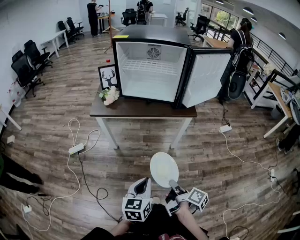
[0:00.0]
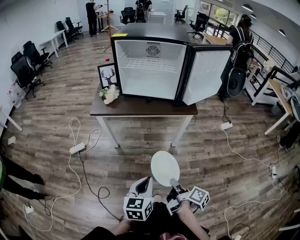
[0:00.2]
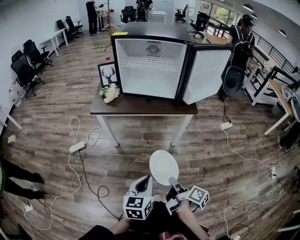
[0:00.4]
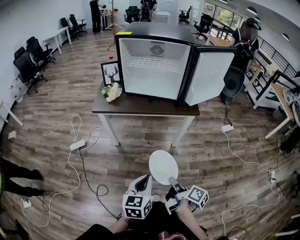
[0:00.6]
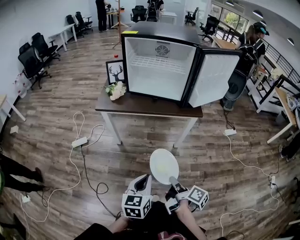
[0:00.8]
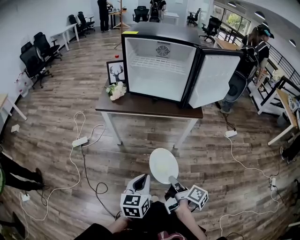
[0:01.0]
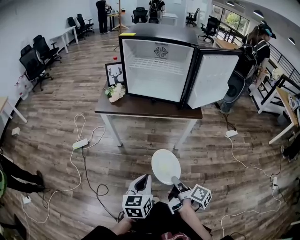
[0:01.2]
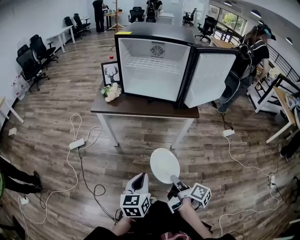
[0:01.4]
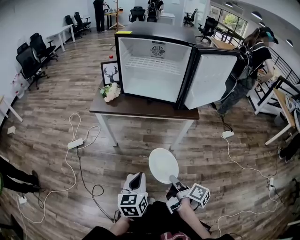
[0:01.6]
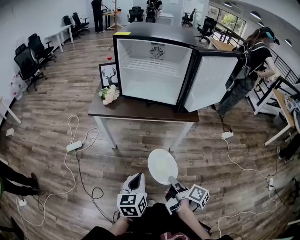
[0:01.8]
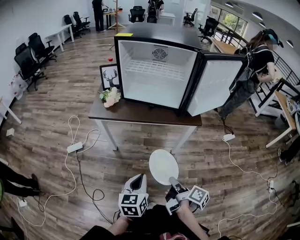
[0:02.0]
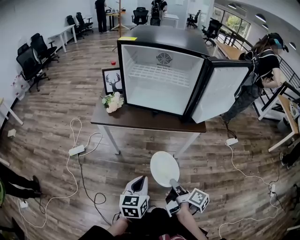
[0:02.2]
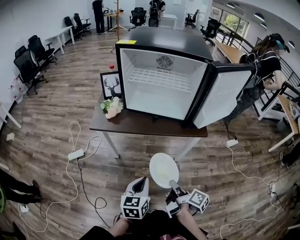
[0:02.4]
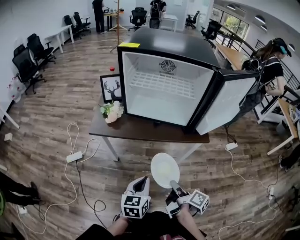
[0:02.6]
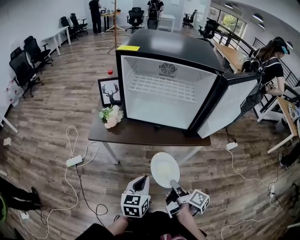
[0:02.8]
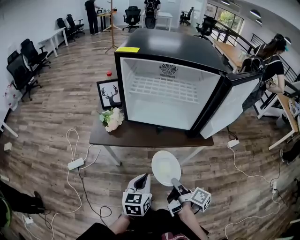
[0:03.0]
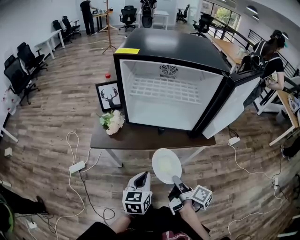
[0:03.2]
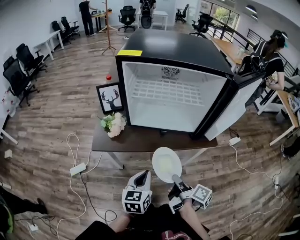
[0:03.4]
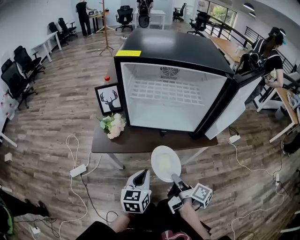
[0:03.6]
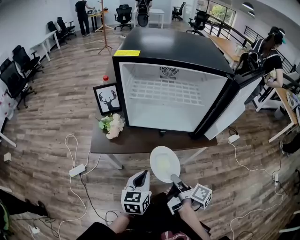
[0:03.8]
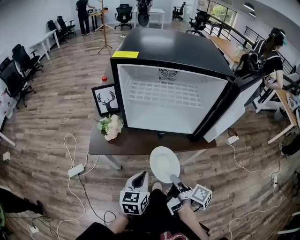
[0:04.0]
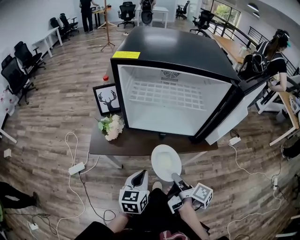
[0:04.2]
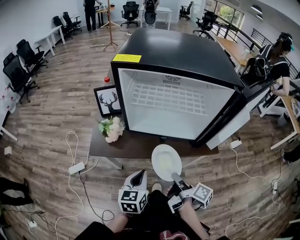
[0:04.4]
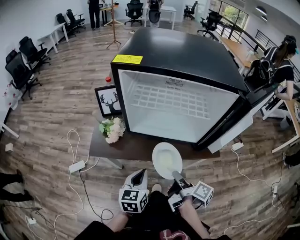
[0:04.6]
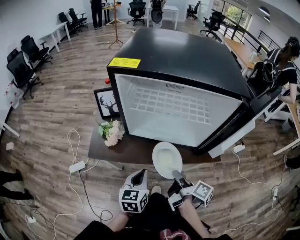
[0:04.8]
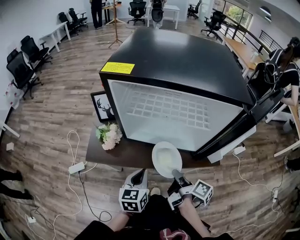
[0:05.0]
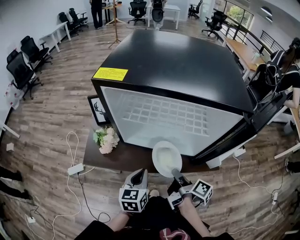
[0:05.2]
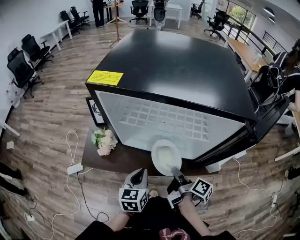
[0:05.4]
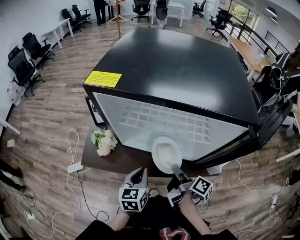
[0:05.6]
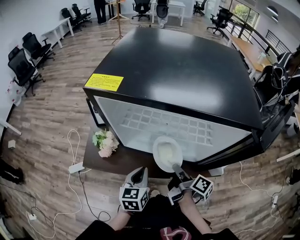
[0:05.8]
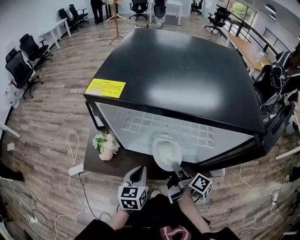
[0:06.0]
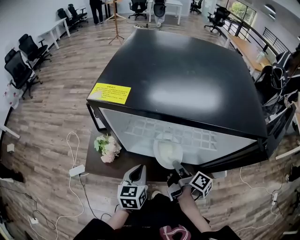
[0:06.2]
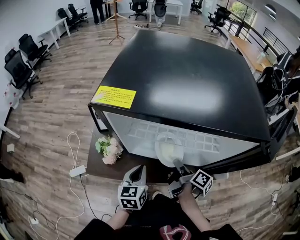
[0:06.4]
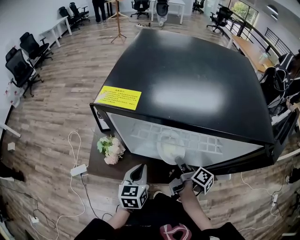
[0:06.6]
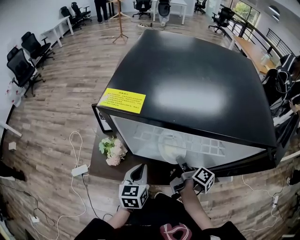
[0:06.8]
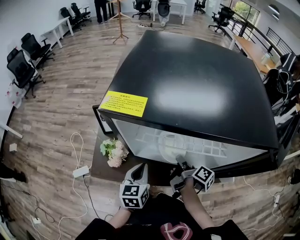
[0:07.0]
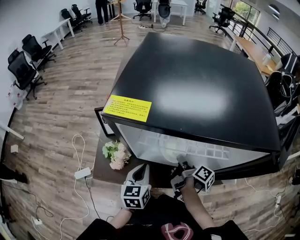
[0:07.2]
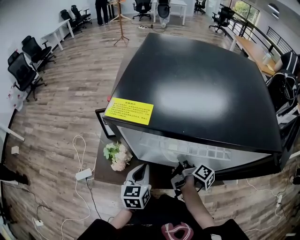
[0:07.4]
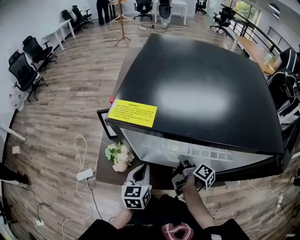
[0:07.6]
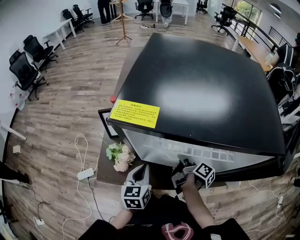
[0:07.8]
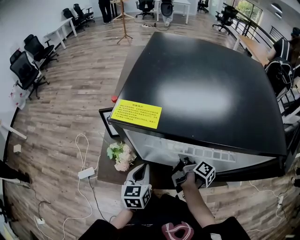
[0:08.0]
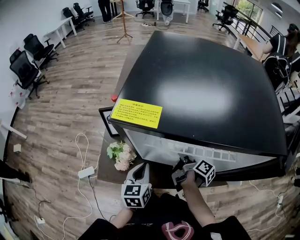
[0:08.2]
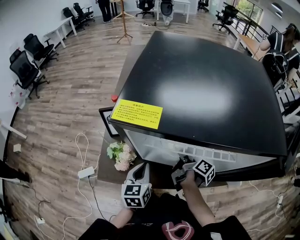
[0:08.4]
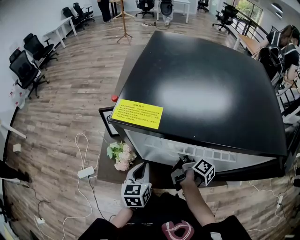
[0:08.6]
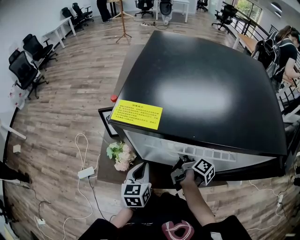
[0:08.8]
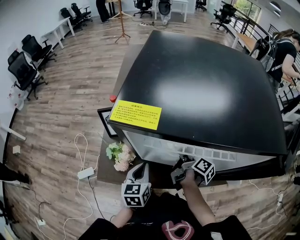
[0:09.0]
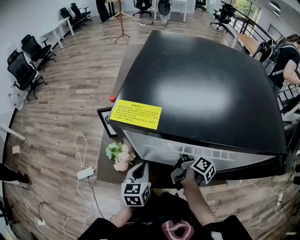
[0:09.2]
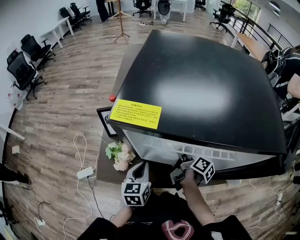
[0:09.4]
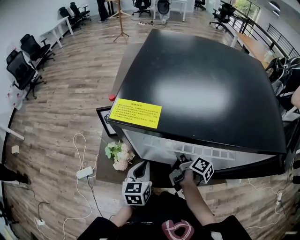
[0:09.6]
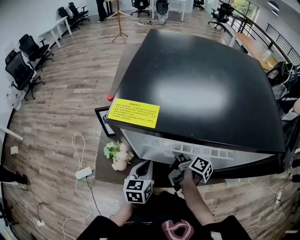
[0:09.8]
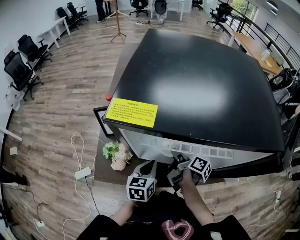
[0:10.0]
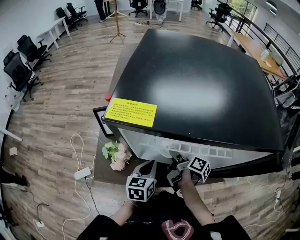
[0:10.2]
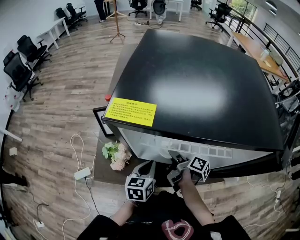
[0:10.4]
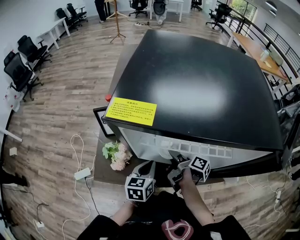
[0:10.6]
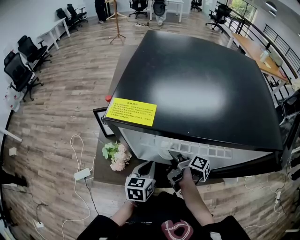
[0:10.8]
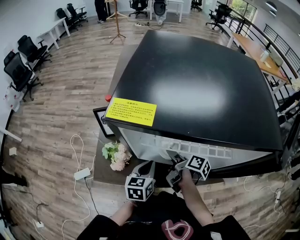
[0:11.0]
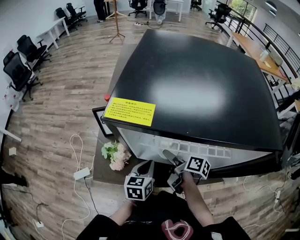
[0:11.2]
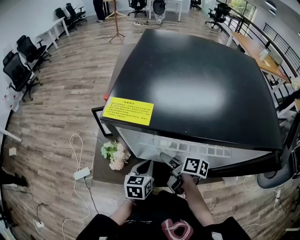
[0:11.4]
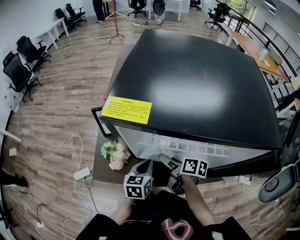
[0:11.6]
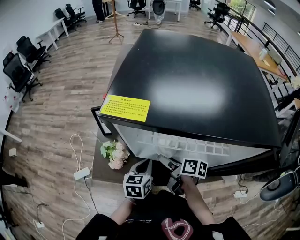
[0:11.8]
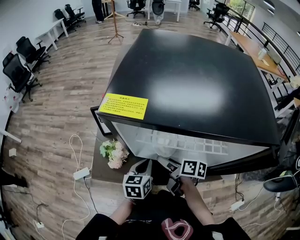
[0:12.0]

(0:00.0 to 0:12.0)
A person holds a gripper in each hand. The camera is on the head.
0:01.6 - 0:03.0: The left gripper shifts by some 25 cm.
0:03.0 - 0:04.4: The left gripper ends up roughly 10 cm from where it was.
0:04.4 - 0:06.0: The left gripper moves some 15 cm.
0:06.0 - 0:07.6: The left gripper shifts by about 10 cm.
0:09.0 - 0:10.4: The left gripper changes place by about 5 cm.

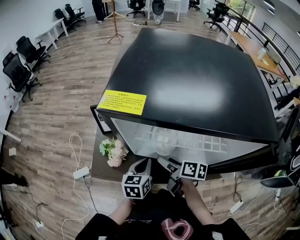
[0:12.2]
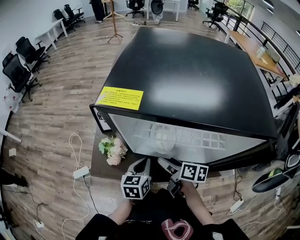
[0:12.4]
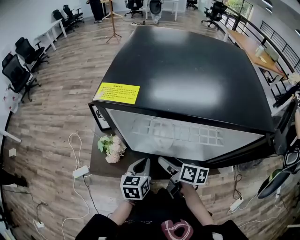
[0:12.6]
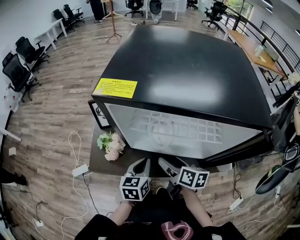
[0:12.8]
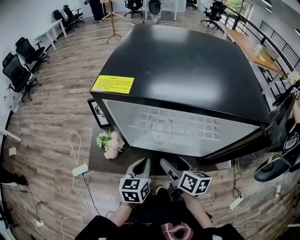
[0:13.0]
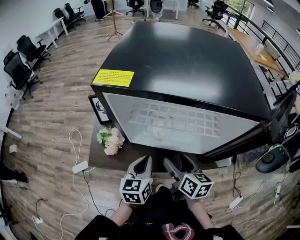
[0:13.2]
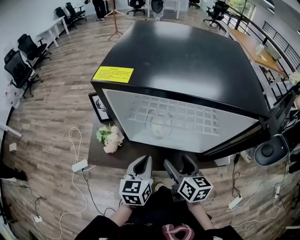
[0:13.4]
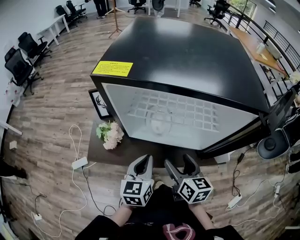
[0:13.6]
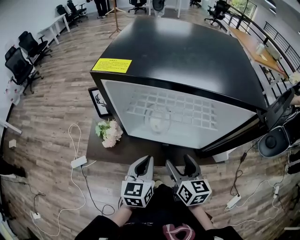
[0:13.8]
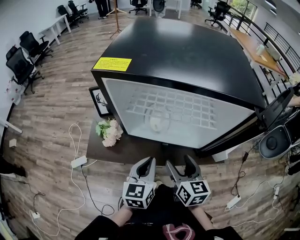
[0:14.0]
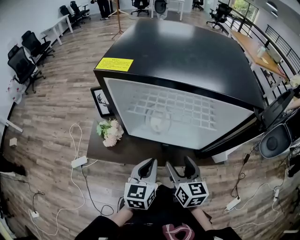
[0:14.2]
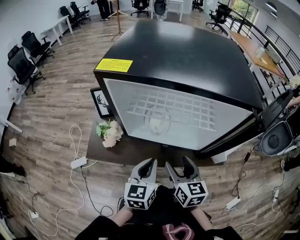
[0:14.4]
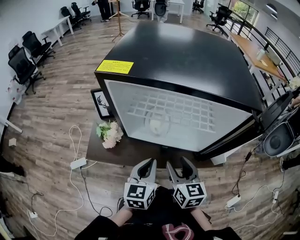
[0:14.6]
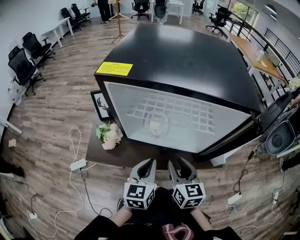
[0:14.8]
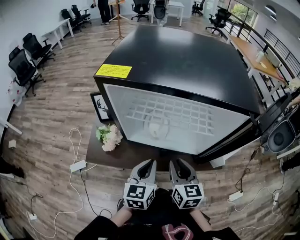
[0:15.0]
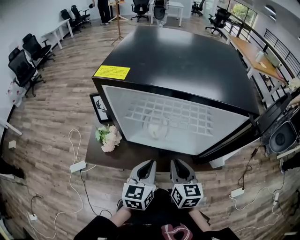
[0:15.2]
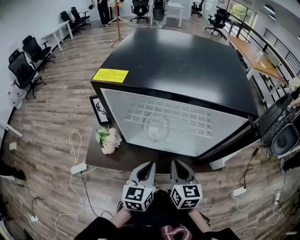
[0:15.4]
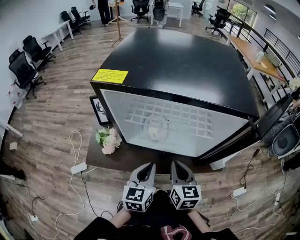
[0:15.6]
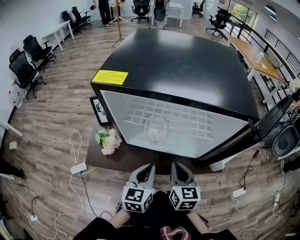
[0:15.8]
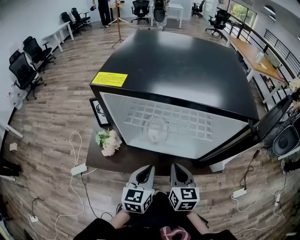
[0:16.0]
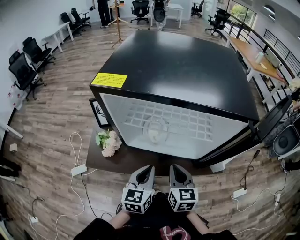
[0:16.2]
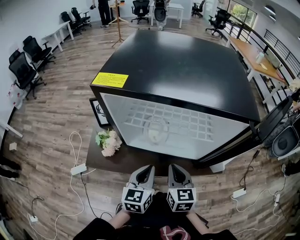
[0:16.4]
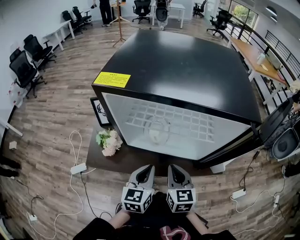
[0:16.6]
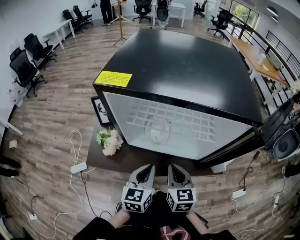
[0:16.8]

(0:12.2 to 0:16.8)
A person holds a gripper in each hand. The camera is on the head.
0:12.2 - 0:13.8: The left gripper changes place by approximately 10 cm.

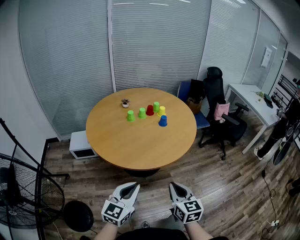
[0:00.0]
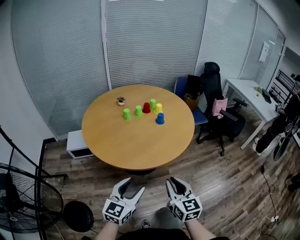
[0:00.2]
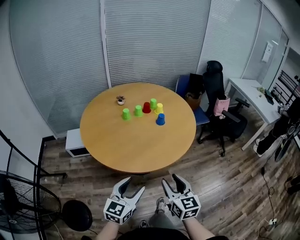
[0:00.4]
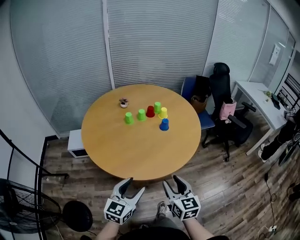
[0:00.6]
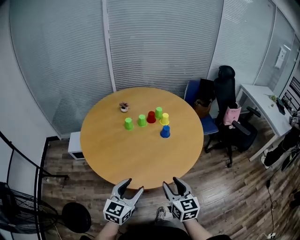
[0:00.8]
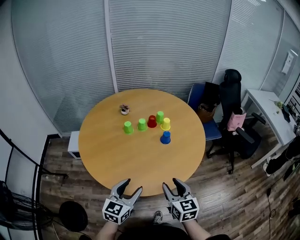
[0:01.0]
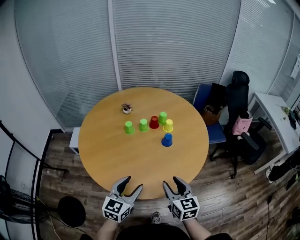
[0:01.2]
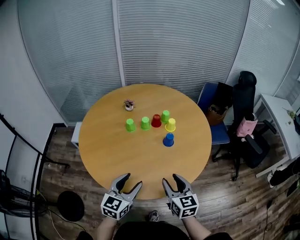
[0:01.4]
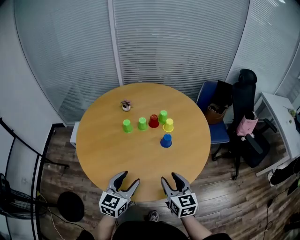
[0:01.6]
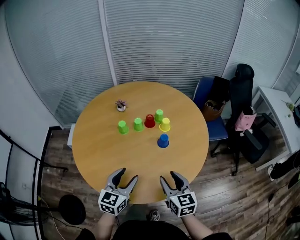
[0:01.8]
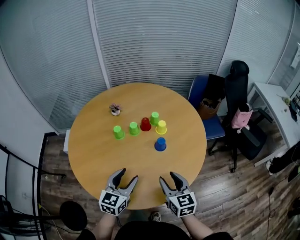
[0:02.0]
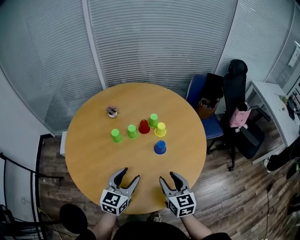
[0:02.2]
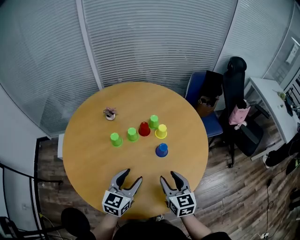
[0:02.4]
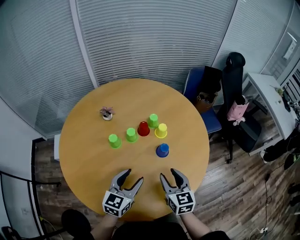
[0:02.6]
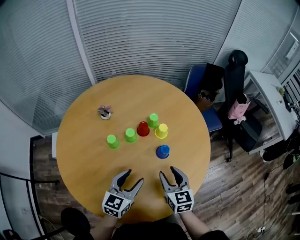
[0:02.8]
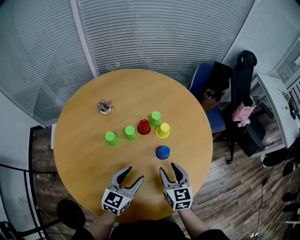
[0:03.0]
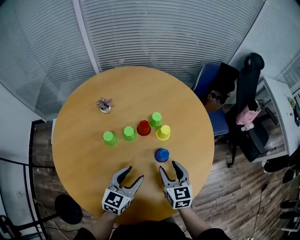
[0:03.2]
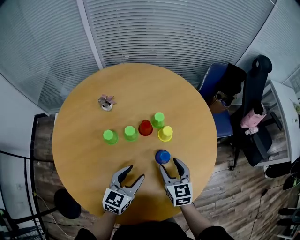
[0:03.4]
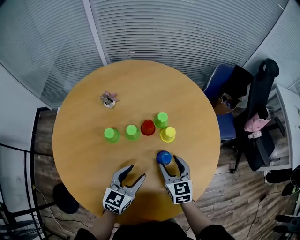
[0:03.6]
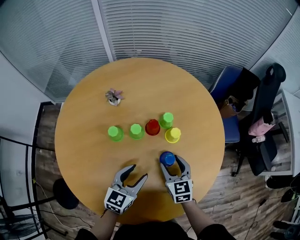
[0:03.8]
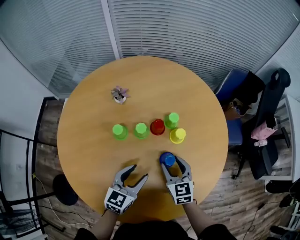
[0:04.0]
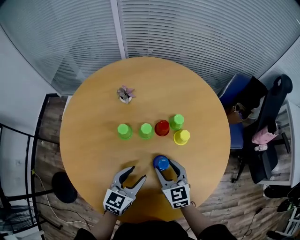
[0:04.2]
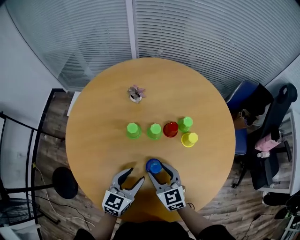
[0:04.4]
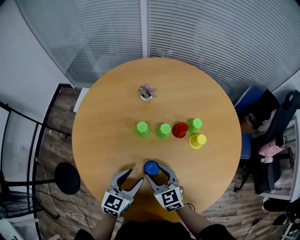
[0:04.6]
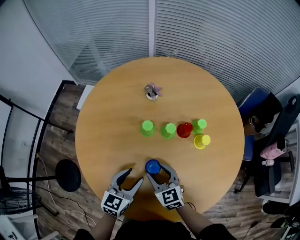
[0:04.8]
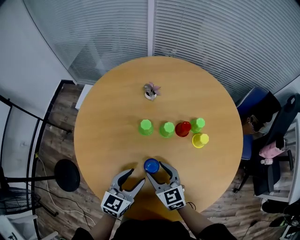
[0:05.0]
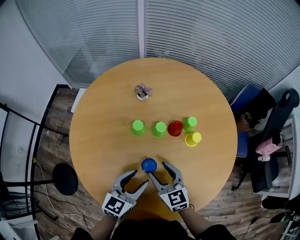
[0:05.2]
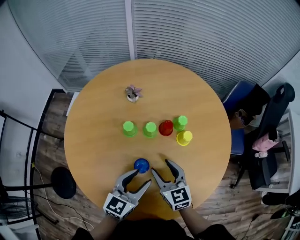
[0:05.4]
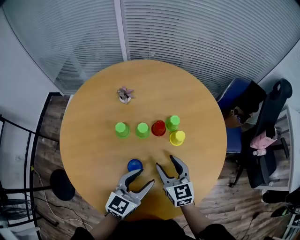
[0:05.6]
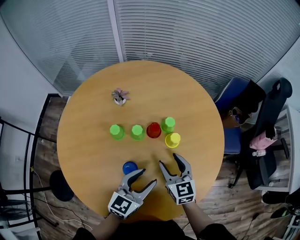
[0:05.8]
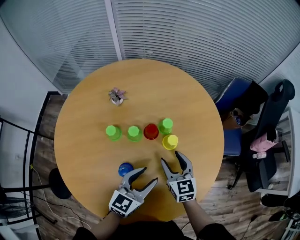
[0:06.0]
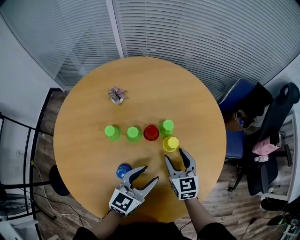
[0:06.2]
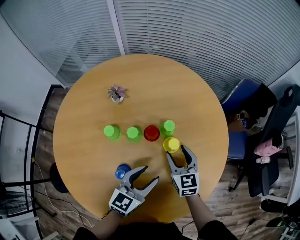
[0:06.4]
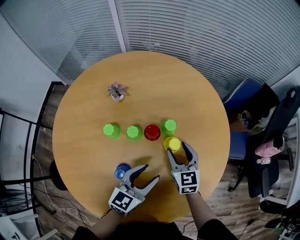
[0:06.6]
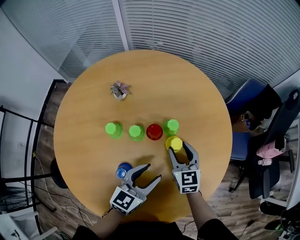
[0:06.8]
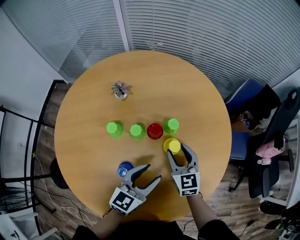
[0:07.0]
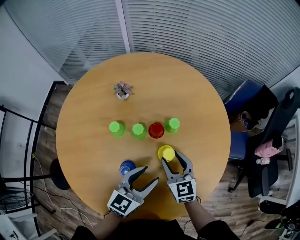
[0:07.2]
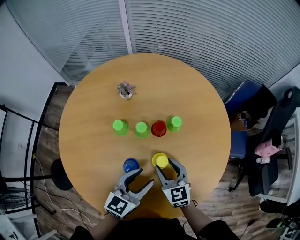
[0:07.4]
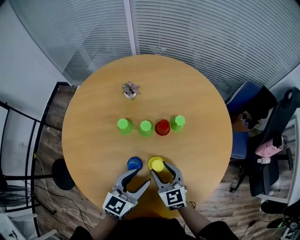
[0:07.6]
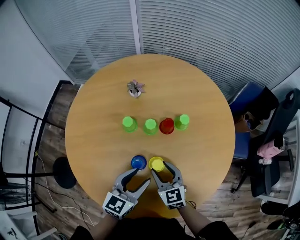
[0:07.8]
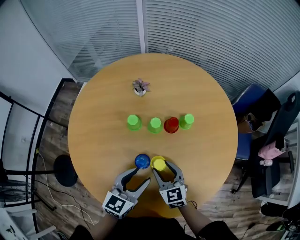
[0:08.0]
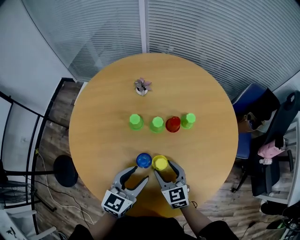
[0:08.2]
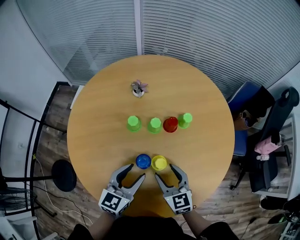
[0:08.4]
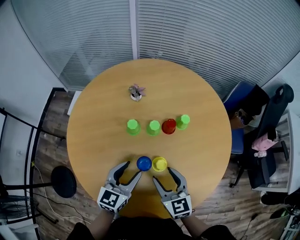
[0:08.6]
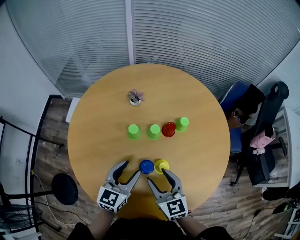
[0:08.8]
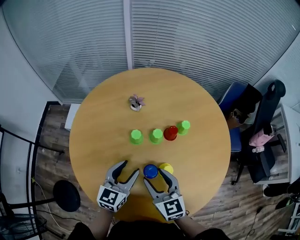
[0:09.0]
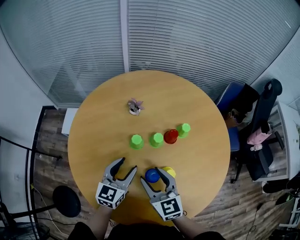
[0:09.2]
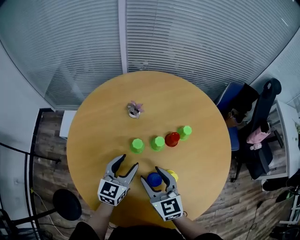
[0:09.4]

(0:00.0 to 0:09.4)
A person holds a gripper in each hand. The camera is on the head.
0:00.0 - 0:01.6: Both grippers travel together forward, some 30 cm. The right gripper opens, while the left gripper changes its angle by about 20 degrees, and opens its fingers.
0:01.6 - 0:03.2: The grippers both shift forward and downward by roughly 20 cm.
0:03.2 - 0:04.8: The left gripper ends up approximately 10 cm from where it was, and changes its angle by about 20 degrees; the right gripper ends up roughly 20 cm from where it was, and rotates some 40 degrees.
0:04.8 - 0:06.2: The left gripper shifts roughly 20 cm to the right; the right gripper travels to the right and forward by some 25 cm, and changes its angle by roughly 20 degrees.
0:06.2 - 0:07.8: Both grippers move to the left and backward, some 15 cm.
0:07.8 - 0:09.4: The left gripper shifts some 20 cm to the left and forward. The right gripper shifts some 15 cm to the left and upward.
